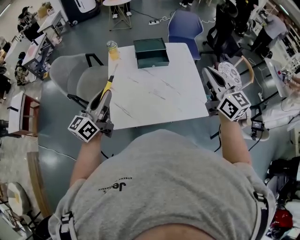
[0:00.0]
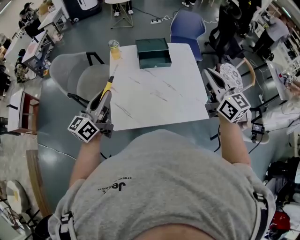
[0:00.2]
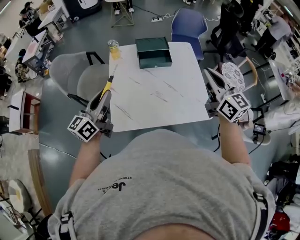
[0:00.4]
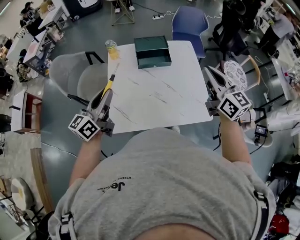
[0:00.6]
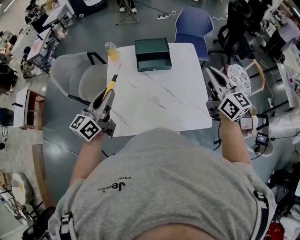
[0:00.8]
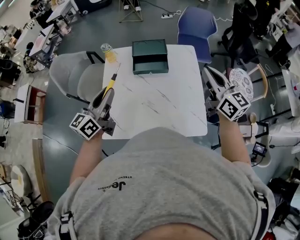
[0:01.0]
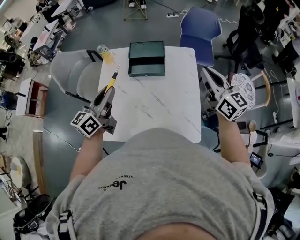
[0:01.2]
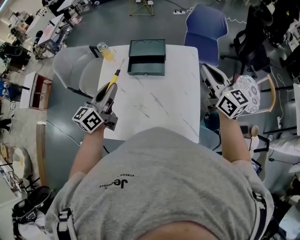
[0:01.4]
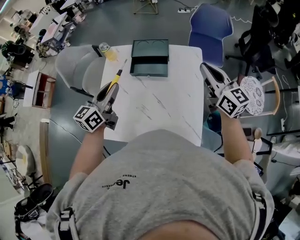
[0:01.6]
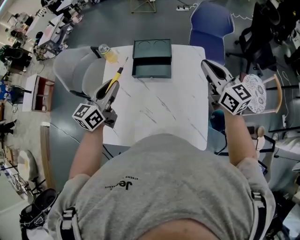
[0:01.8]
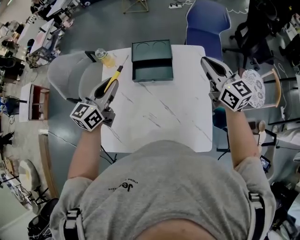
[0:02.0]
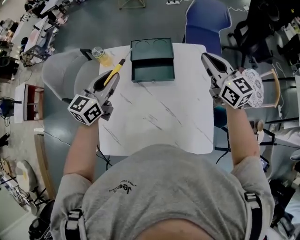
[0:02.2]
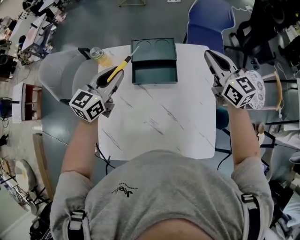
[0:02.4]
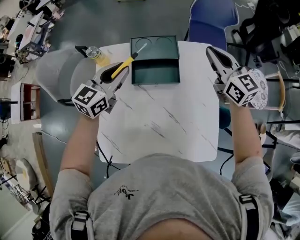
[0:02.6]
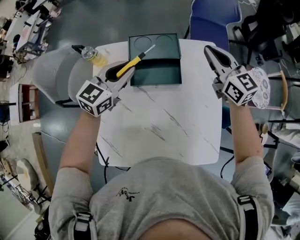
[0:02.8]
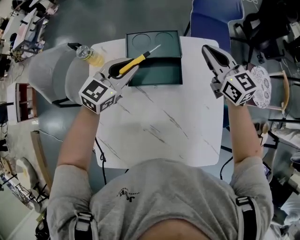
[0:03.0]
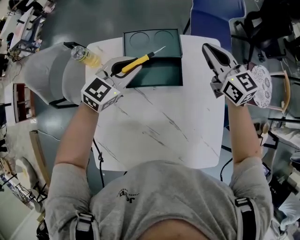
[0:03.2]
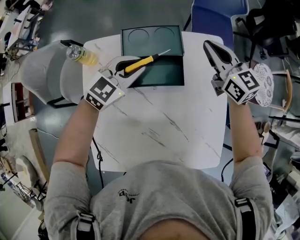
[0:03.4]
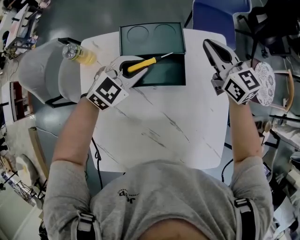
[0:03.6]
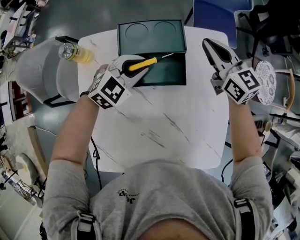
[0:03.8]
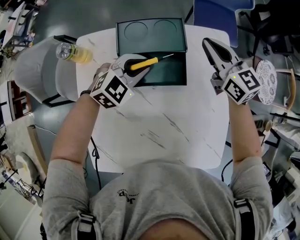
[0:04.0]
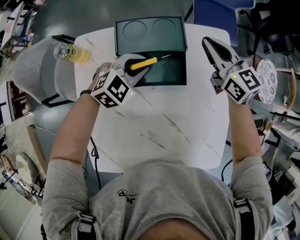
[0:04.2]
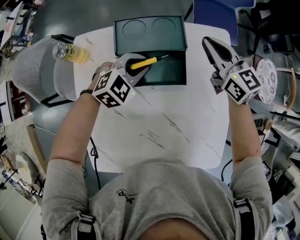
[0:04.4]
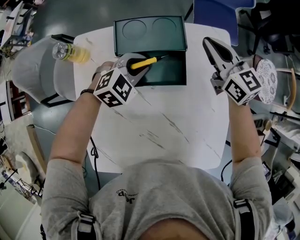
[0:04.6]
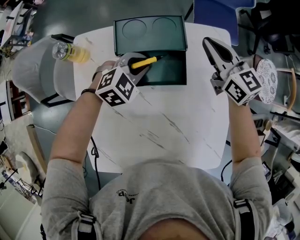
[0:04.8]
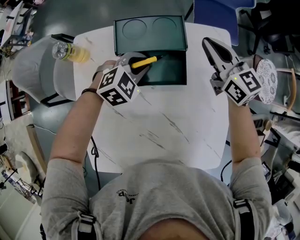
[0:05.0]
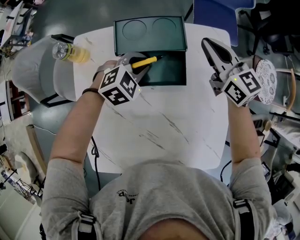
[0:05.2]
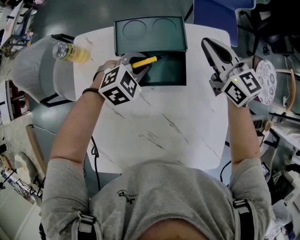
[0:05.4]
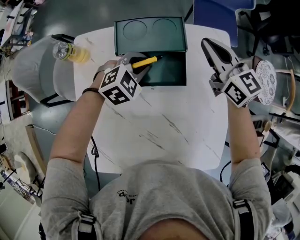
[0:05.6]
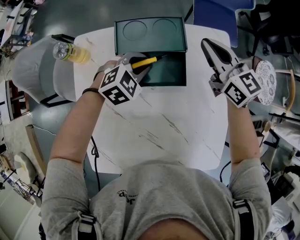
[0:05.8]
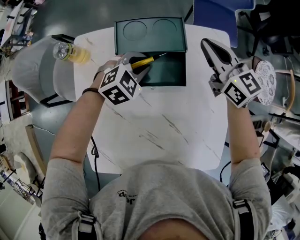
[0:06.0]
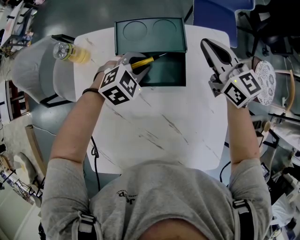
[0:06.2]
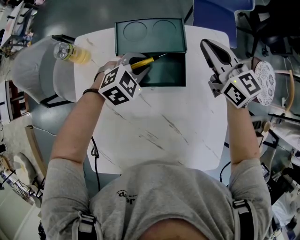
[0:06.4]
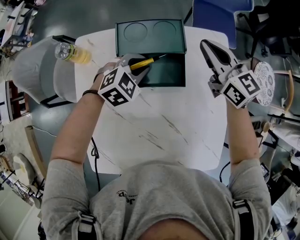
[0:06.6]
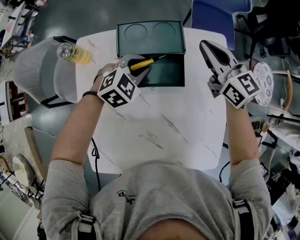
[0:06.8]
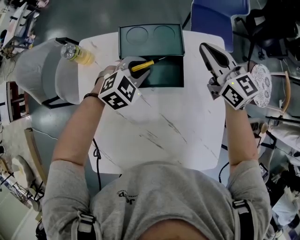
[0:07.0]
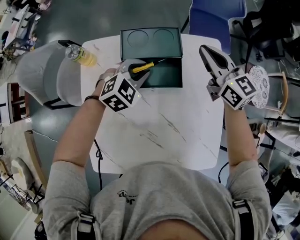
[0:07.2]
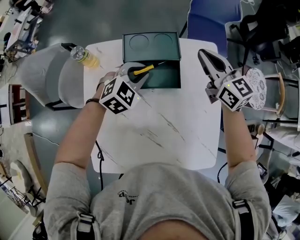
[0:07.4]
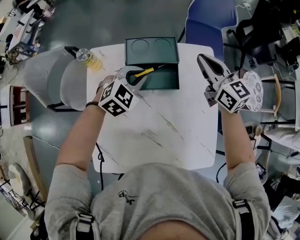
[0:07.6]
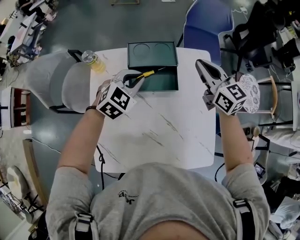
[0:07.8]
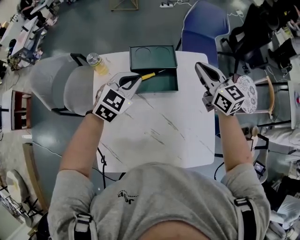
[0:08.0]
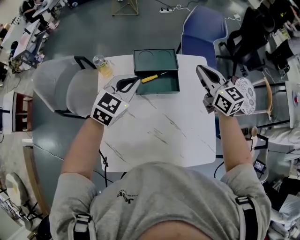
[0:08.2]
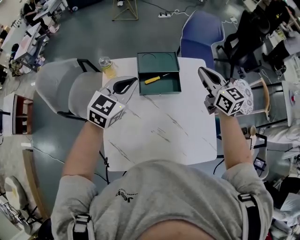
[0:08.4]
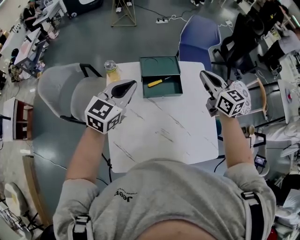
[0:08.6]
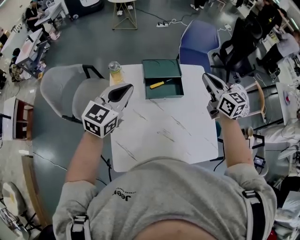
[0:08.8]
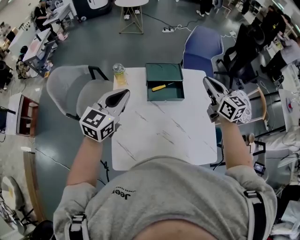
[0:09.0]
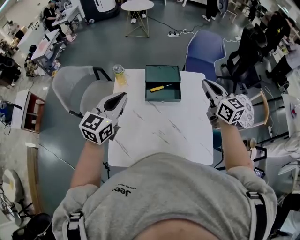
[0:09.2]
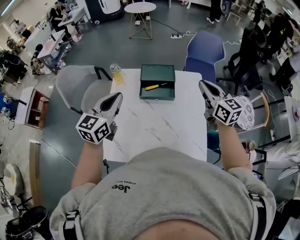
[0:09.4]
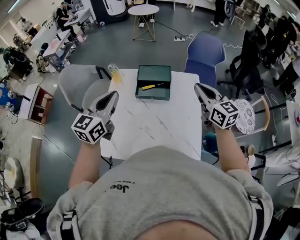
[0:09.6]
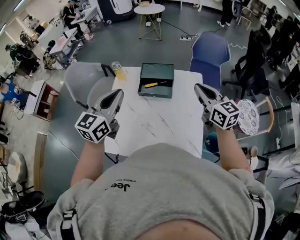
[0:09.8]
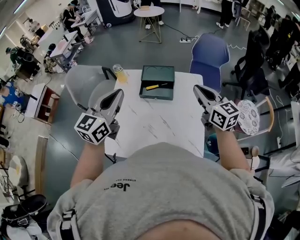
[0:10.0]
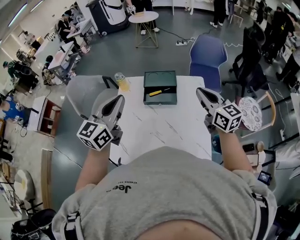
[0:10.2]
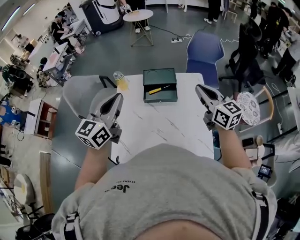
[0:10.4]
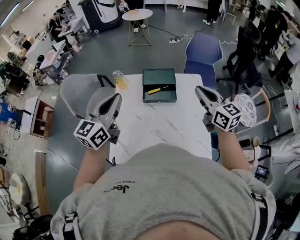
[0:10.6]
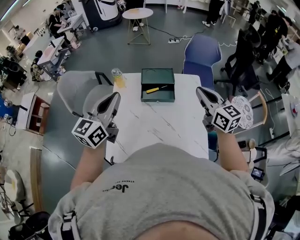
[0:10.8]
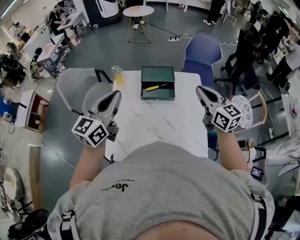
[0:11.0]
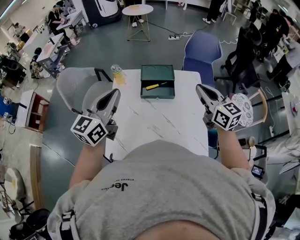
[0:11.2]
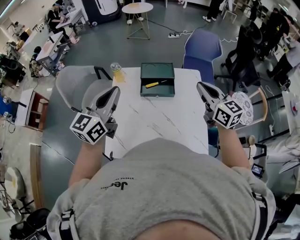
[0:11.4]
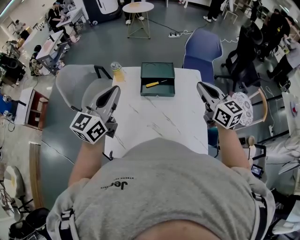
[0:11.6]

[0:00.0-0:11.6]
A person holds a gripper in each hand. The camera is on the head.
0:00.0 to 0:01.4: The right gripper is displaced forward and to the right by some 25 cm, while the left gripper heads to the right and forward, covering some 25 cm.
0:01.4 to 0:02.8: The left gripper shifts roughly 25 cm forward and downward, and rotates roughly 40 degrees, while the right gripper is displaced forward, downward and to the left by about 25 cm.
0:02.8 to 0:04.4: Both grippers travel together downward, approximately 15 cm. The left gripper swivels about 40 degrees.
0:04.4 to 0:05.8: The grippers make only small movements.
0:05.8 to 0:07.2: The left gripper moves upward, roughly 5 cm.
0:07.2 to 0:08.8: The left gripper heads upward, to the left and backward, covering about 30 cm, and angles its fingers upward, by approximately 30 degrees; the right gripper moves upward and backward, approximately 20 cm.
0:08.8 to 0:10.2: The right gripper moves backward, to the right and upward, approximately 15 cm; the left gripper travels backward, upward and to the right by approximately 20 cm, and rotates about 20 degrees.
0:10.2 to 0:11.6: The grippers stay close to where they were, moving slightly.

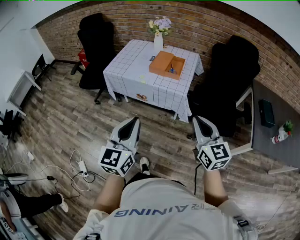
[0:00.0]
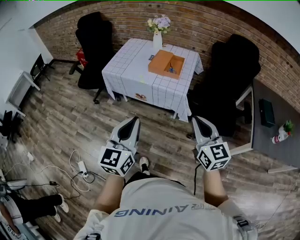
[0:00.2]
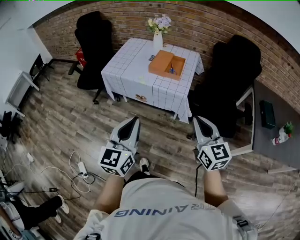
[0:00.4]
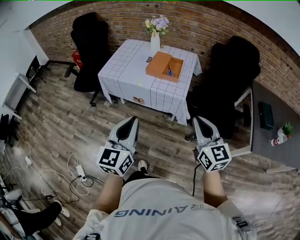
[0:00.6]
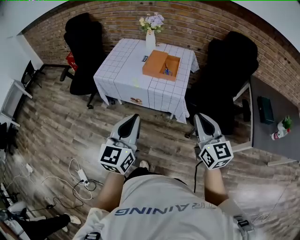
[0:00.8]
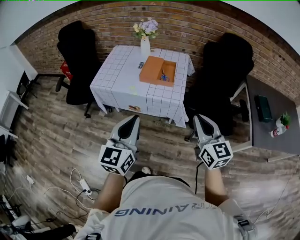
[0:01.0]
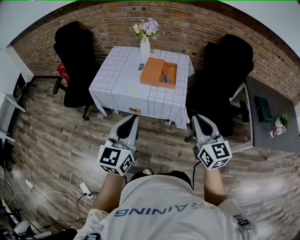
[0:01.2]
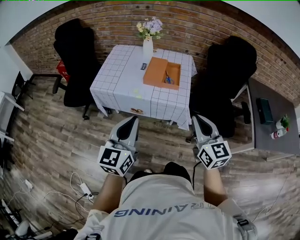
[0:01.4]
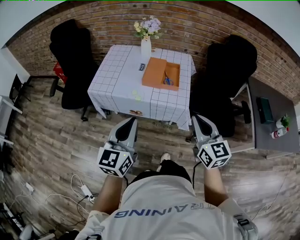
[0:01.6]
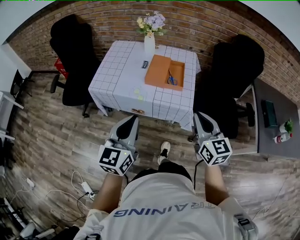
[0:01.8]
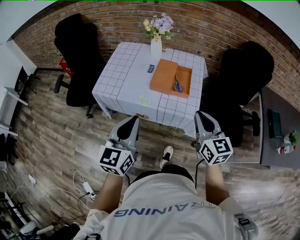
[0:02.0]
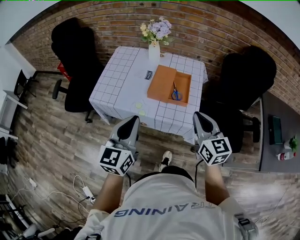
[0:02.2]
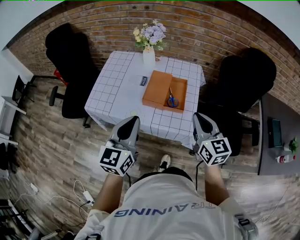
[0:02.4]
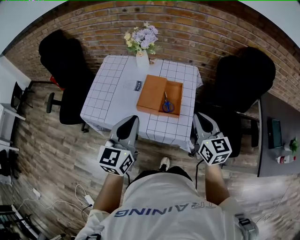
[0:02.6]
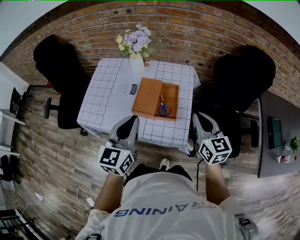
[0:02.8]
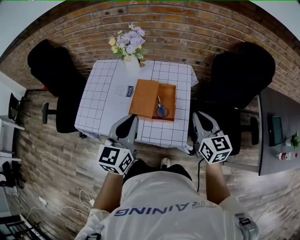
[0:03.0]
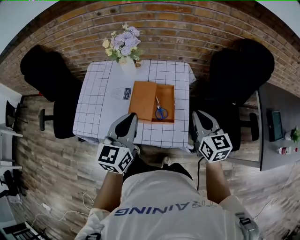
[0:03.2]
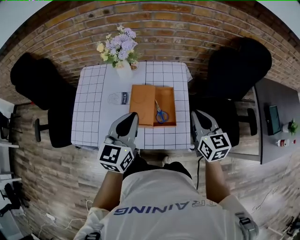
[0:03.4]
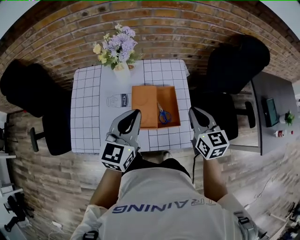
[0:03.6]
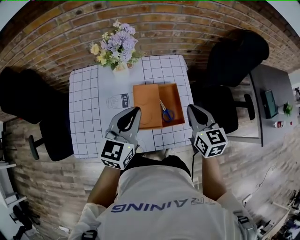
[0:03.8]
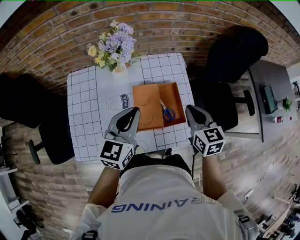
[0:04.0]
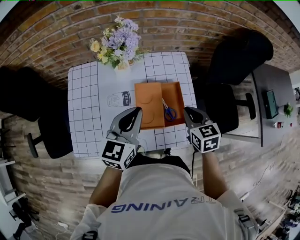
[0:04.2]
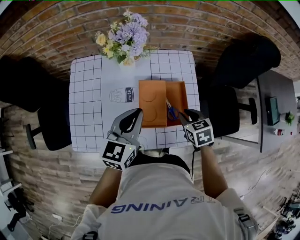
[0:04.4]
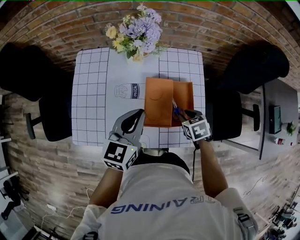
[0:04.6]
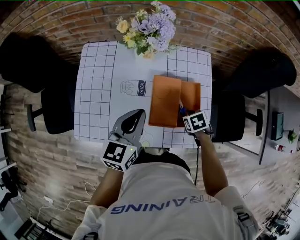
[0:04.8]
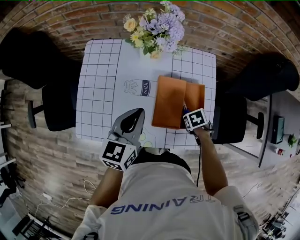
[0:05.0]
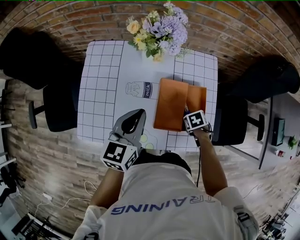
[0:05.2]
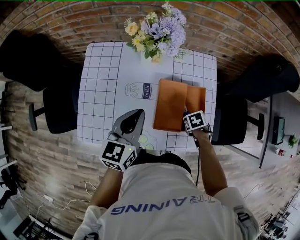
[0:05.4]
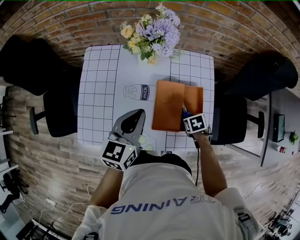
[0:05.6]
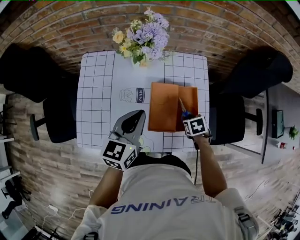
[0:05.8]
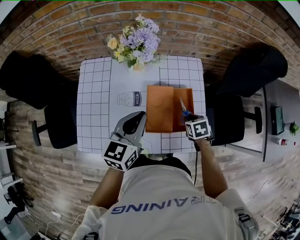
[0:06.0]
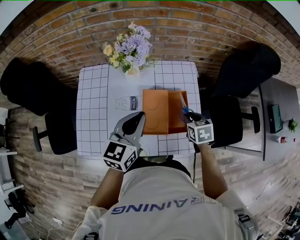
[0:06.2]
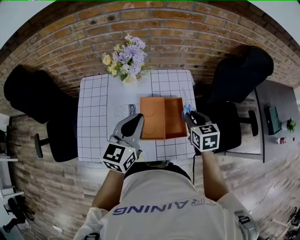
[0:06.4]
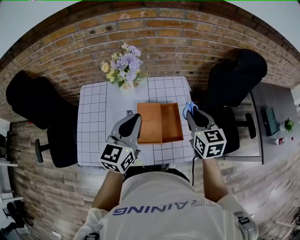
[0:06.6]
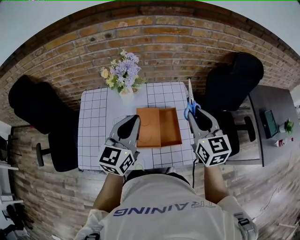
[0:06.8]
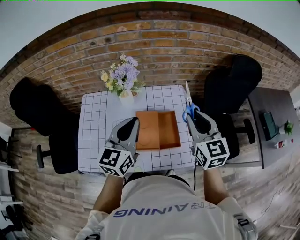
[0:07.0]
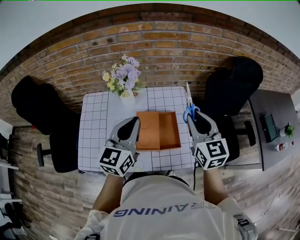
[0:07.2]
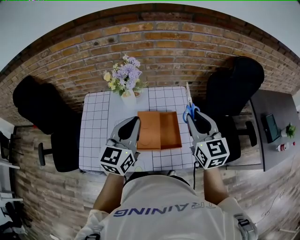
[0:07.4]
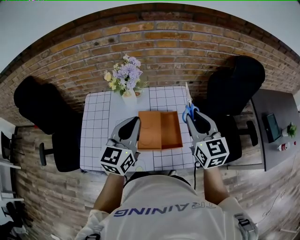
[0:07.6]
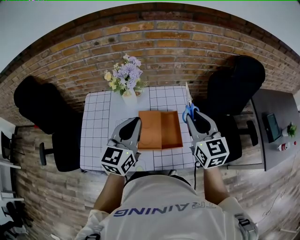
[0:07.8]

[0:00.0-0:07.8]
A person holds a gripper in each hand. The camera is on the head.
0:00.0 to 0:01.6: The right gripper travels forward and to the left by about 20 cm. The left gripper moves forward, some 20 cm.
0:01.6 to 0:03.2: Both grippers travel together forward, approximately 35 cm.
0:03.2 to 0:04.6: The left gripper shifts about 15 cm to the left, forward and downward, while the right gripper moves downward and to the left, approximately 25 cm, tips its fingers downward by about 50 degrees, and opens its fingers.
0:04.6 to 0:06.2: The right gripper travels upward by approximately 5 cm.
0:06.2 to 0:07.8: The right gripper is displaced upward by about 25 cm, and angles its fingers upward, by about 40 degrees. Meanwhile the left gripper heads upward, covering roughly 10 cm.

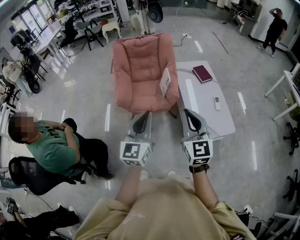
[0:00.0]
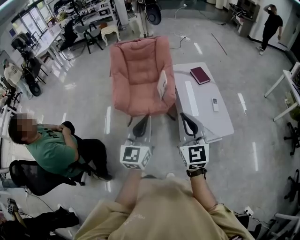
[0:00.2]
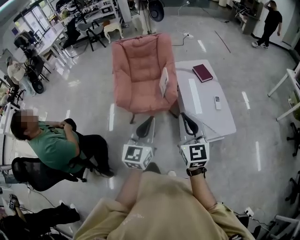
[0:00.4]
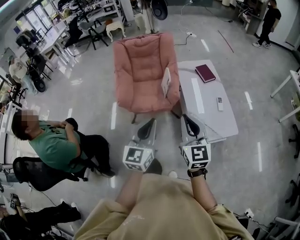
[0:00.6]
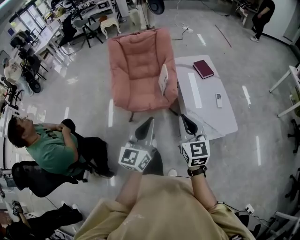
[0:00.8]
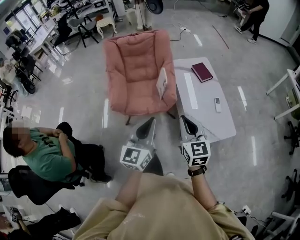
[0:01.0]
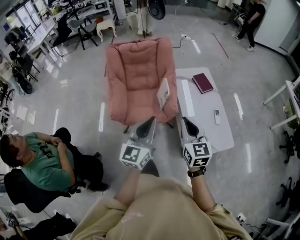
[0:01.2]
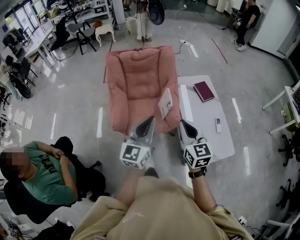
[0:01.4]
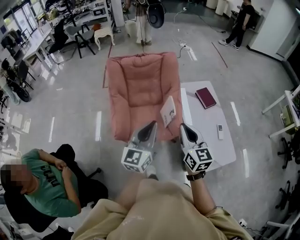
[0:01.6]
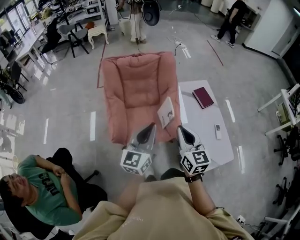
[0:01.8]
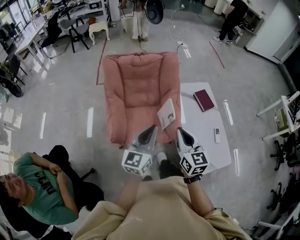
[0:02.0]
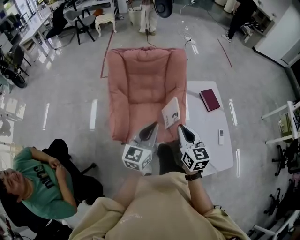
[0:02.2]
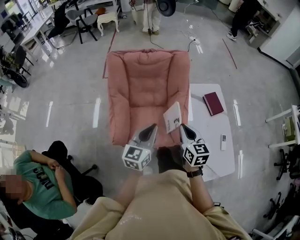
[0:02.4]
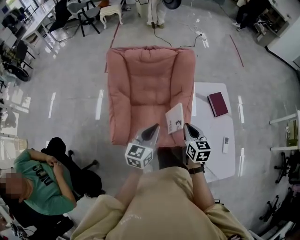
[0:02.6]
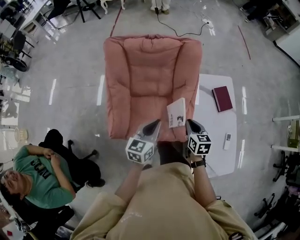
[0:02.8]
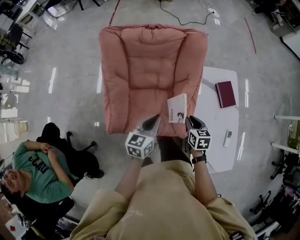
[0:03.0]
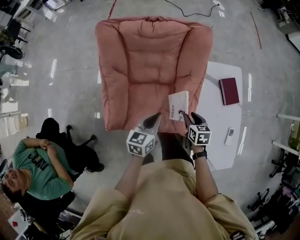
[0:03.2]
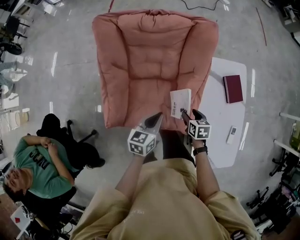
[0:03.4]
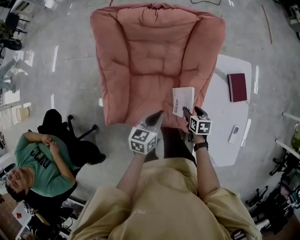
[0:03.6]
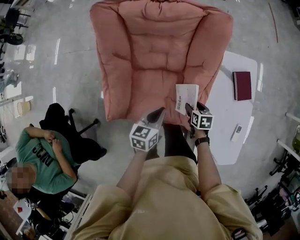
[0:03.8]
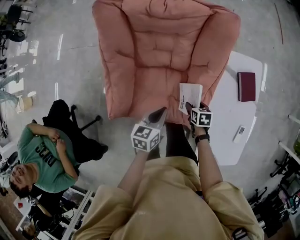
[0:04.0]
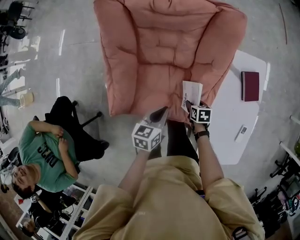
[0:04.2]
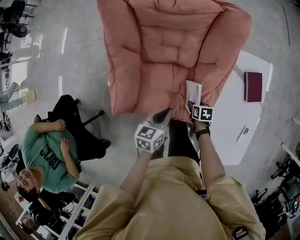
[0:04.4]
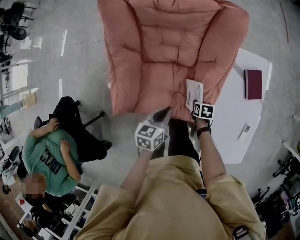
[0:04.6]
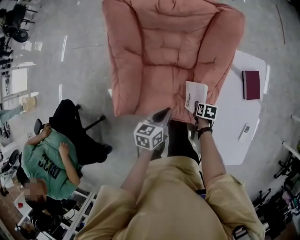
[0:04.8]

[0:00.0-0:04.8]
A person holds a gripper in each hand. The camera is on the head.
0:00.0 to 0:01.6: The grippers both shift forward by some 30 cm.
0:01.6 to 0:03.2: The right gripper moves downward and forward, roughly 50 cm, angles its fingers downward, by roughly 40 degrees, and opens up; the left gripper shifts some 40 cm forward and downward, and rotates about 40 degrees.
0:03.2 to 0:04.8: The right gripper heads downward, covering roughly 20 cm, changes its angle by roughly 20 degrees, and opens, then closes again; the left gripper travels downward by roughly 10 cm.
